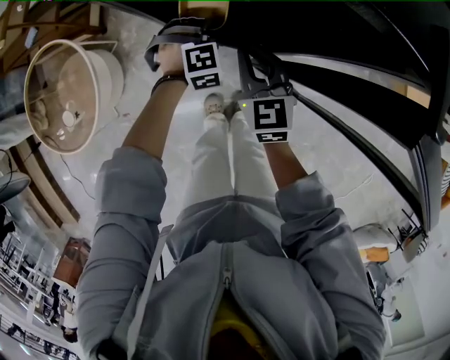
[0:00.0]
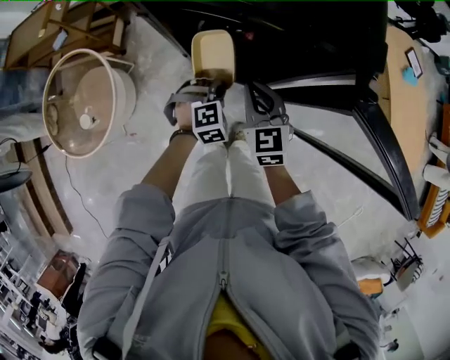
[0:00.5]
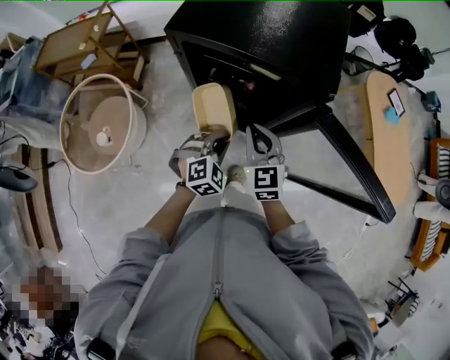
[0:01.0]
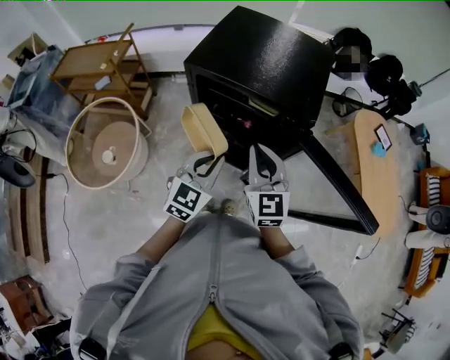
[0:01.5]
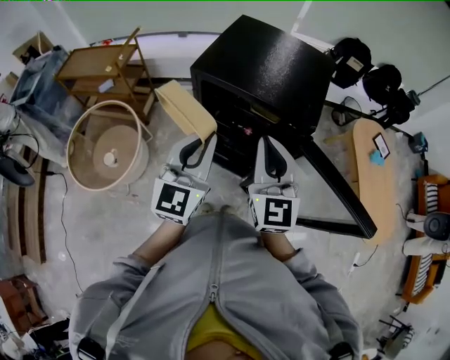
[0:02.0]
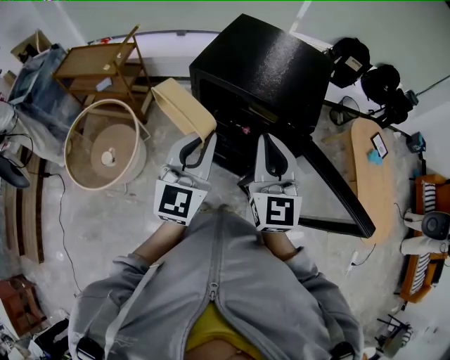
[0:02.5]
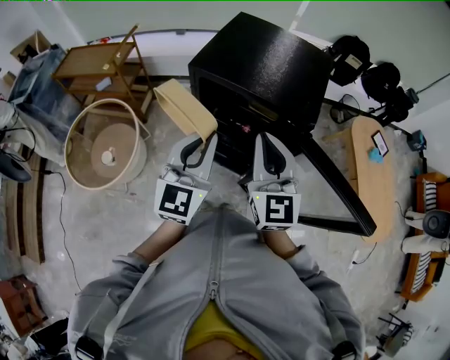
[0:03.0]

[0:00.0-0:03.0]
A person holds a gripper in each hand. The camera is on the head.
0:00.0 to 0:01.5: The right gripper shifts roughly 25 cm upward. Meanwhile the left gripper shifts approximately 40 cm upward and backward, and tilts its fingers some 40 degrees upward.
0:01.5 to 0:03.0: The two grippers go roughly 10 cm upward. The left gripper swivels about 20 degrees.

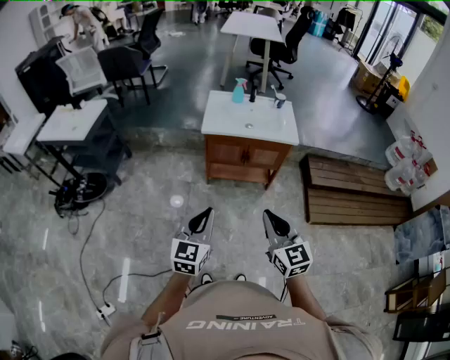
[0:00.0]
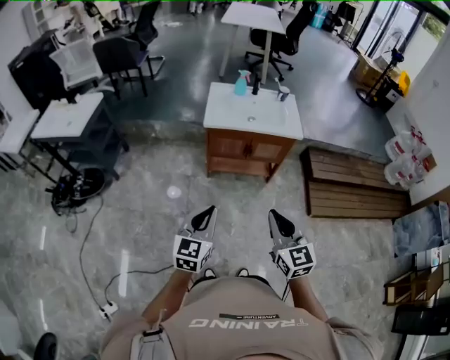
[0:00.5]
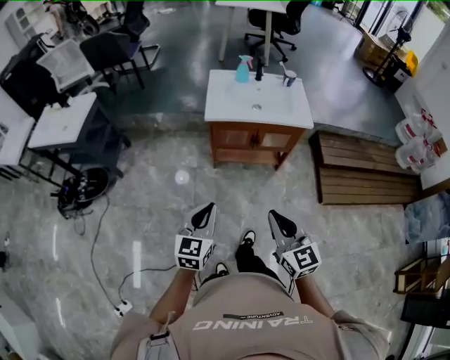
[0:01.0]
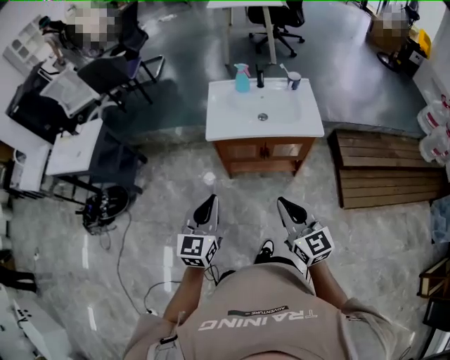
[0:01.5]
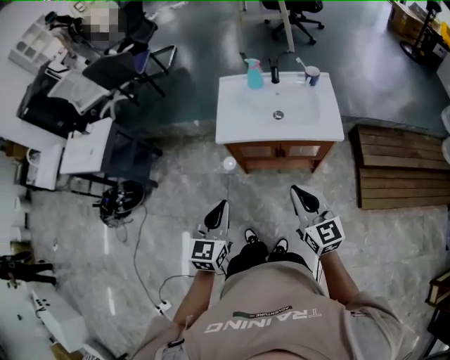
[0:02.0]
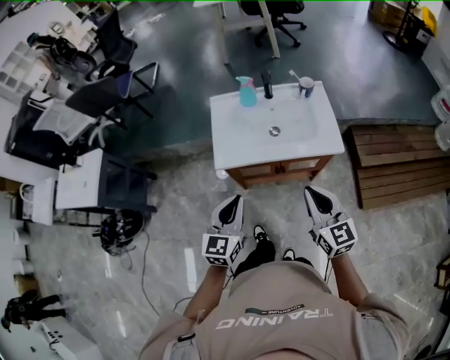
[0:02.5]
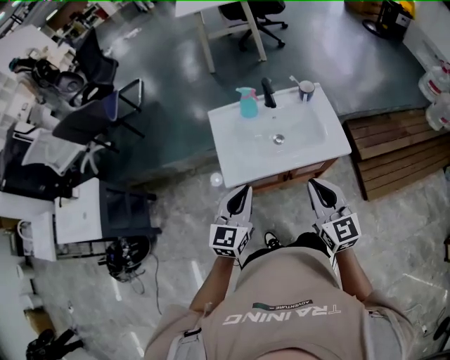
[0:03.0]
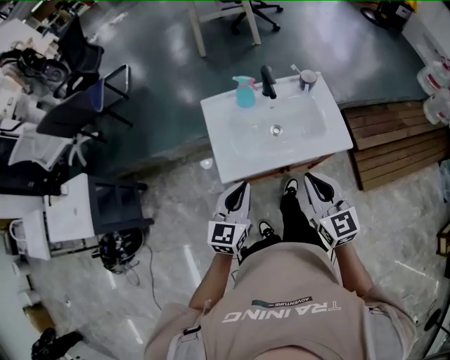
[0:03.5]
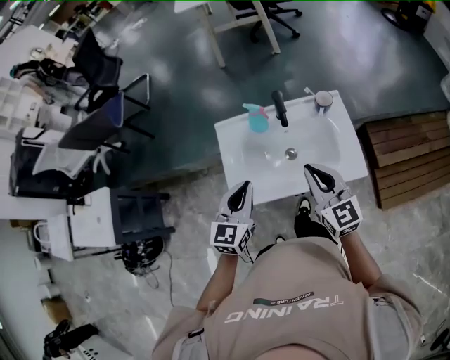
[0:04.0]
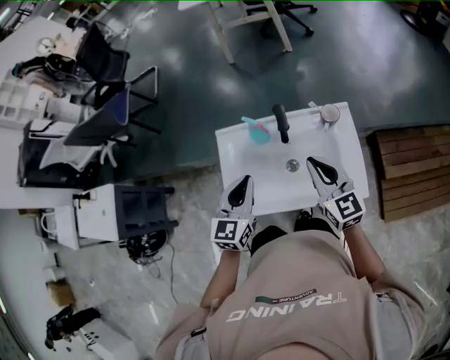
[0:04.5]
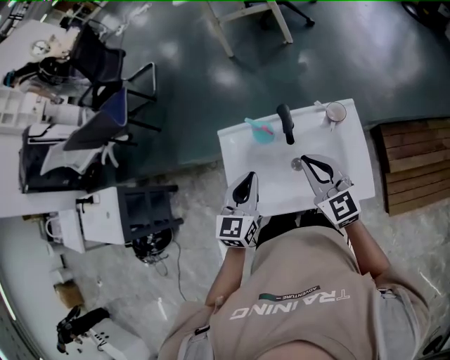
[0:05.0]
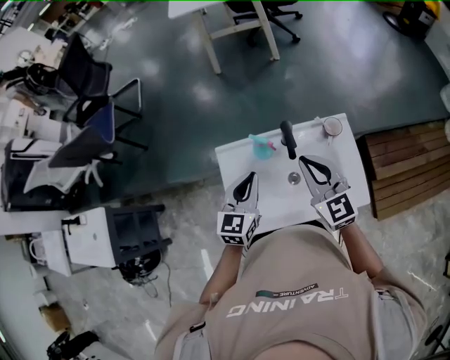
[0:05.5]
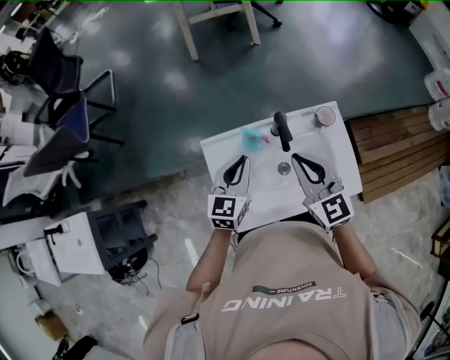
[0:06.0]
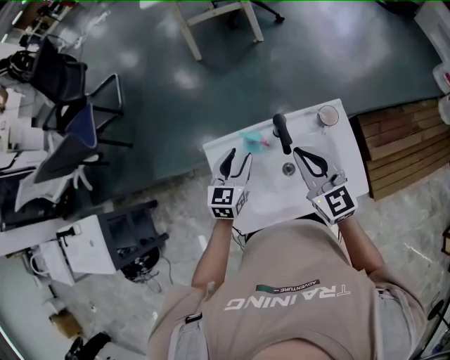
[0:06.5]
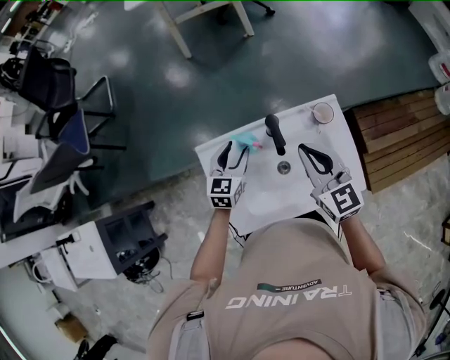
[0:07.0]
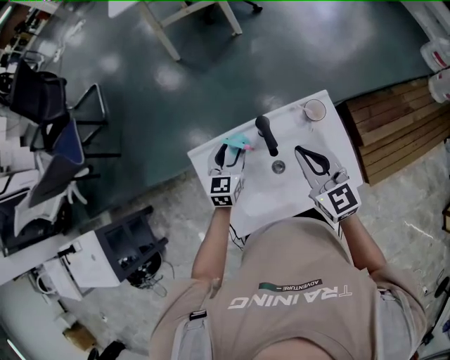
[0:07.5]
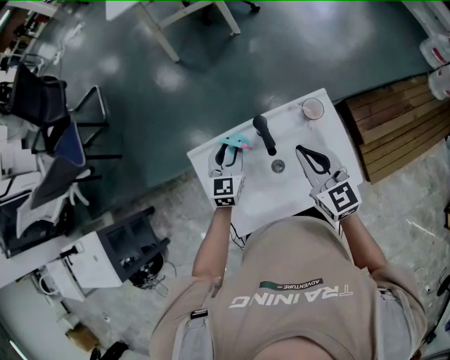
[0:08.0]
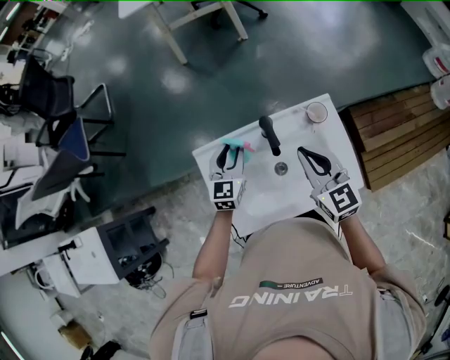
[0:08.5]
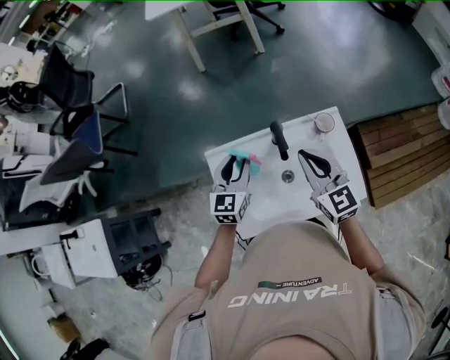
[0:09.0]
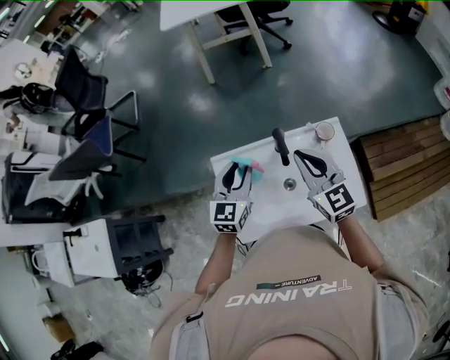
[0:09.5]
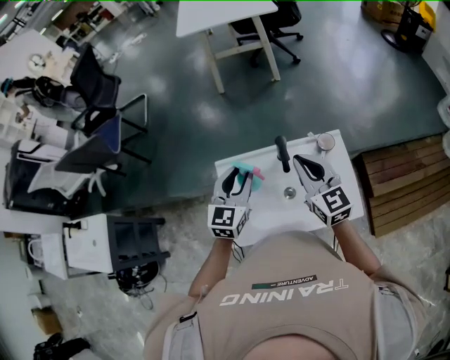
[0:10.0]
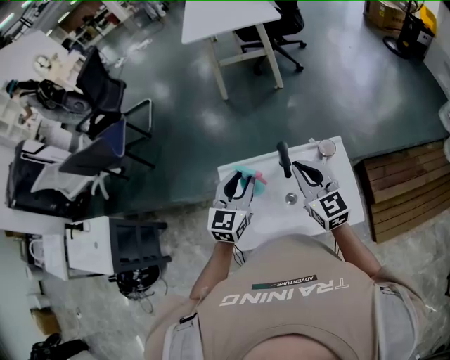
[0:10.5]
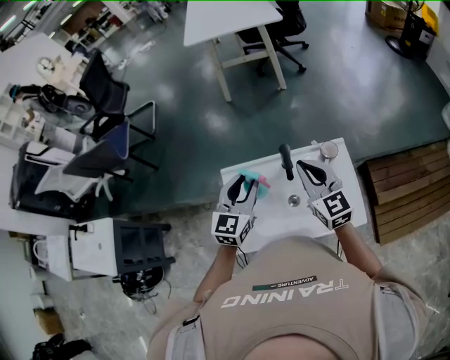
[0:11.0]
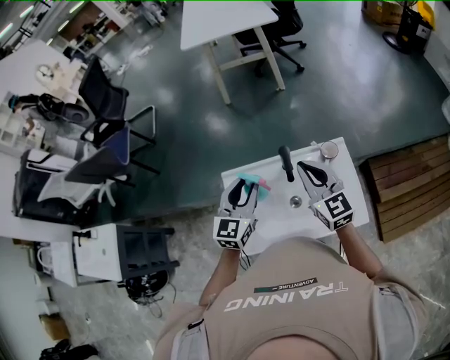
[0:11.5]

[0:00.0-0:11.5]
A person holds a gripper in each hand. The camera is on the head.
0:00.0 to 0:02.0: Both grippers travel together forward, about 25 cm.
0:02.0 to 0:04.0: Both grippers move forward, about 30 cm.
0:04.0 to 0:06.0: Both grippers travel together forward, some 15 cm.
0:06.0 to 0:07.5: The left gripper shifts roughly 10 cm forward and downward, and opens up. Meanwhile the right gripper travels to the right by some 5 cm.
0:07.5 to 0:09.5: The right gripper moves upward, approximately 5 cm; the left gripper moves upward and backward, about 15 cm.
0:09.5 to 0:11.5: The grippers make only small movements.
